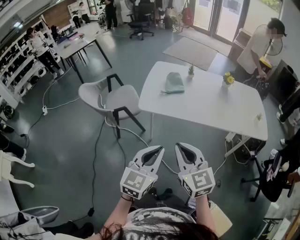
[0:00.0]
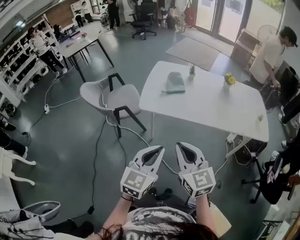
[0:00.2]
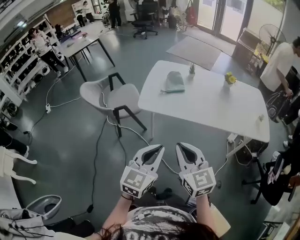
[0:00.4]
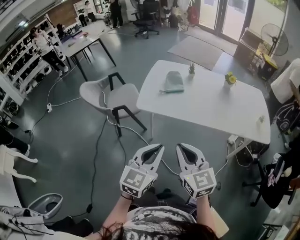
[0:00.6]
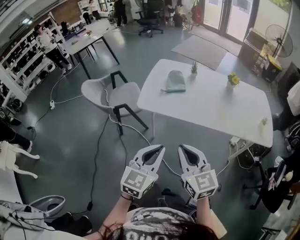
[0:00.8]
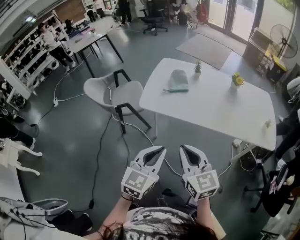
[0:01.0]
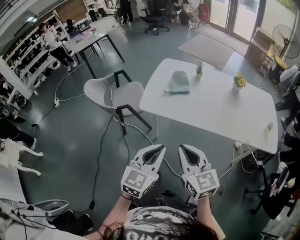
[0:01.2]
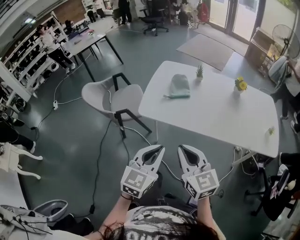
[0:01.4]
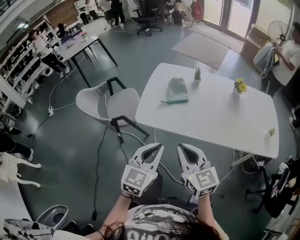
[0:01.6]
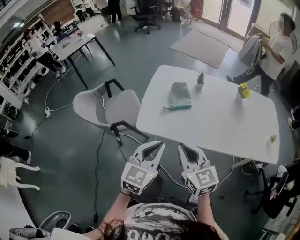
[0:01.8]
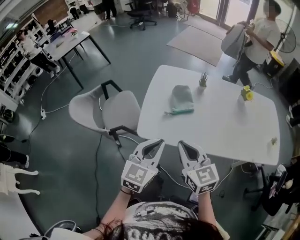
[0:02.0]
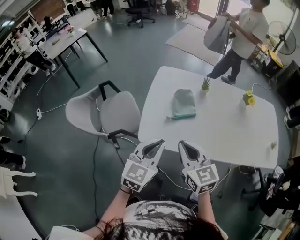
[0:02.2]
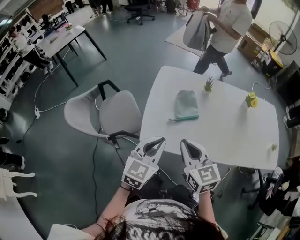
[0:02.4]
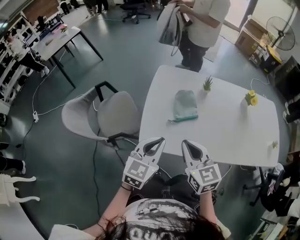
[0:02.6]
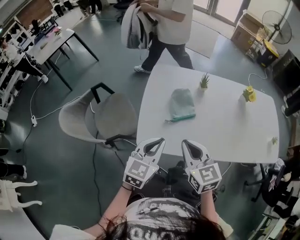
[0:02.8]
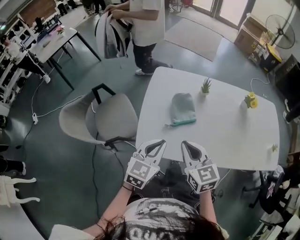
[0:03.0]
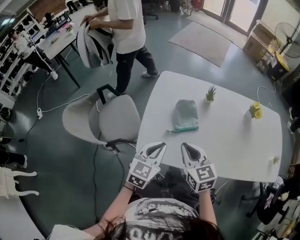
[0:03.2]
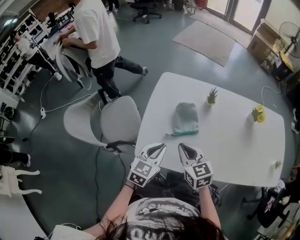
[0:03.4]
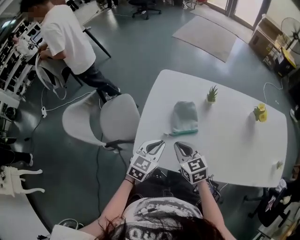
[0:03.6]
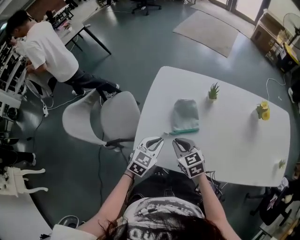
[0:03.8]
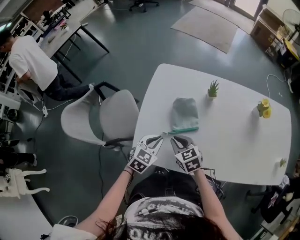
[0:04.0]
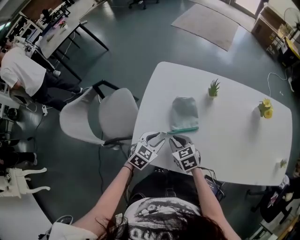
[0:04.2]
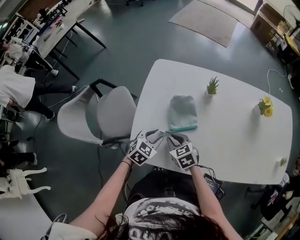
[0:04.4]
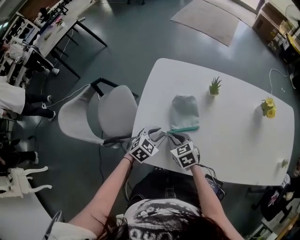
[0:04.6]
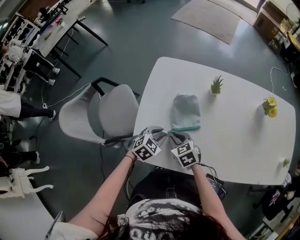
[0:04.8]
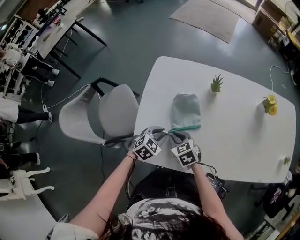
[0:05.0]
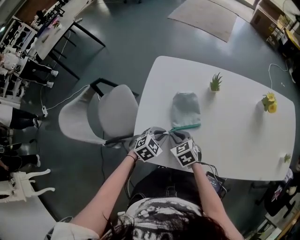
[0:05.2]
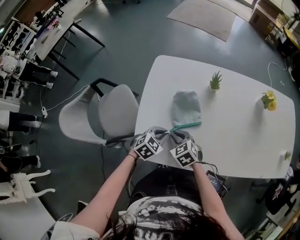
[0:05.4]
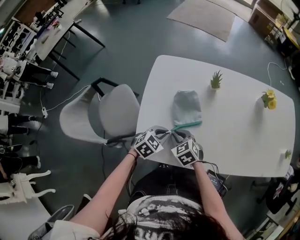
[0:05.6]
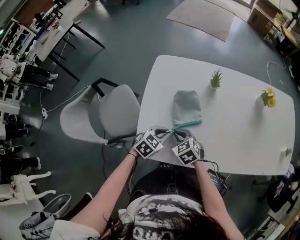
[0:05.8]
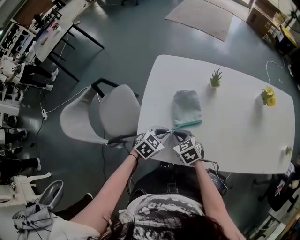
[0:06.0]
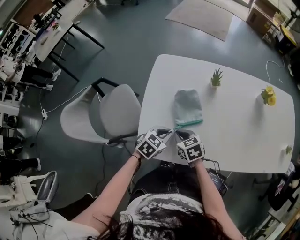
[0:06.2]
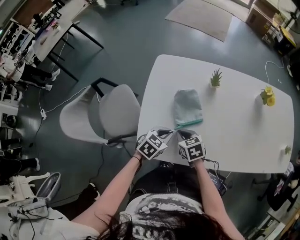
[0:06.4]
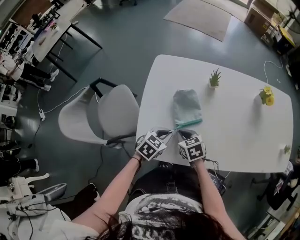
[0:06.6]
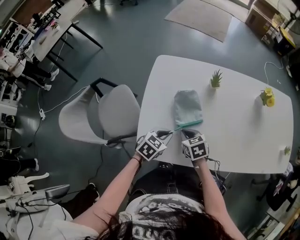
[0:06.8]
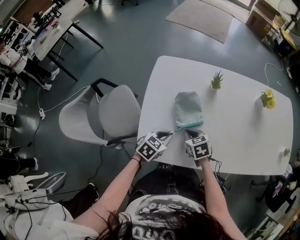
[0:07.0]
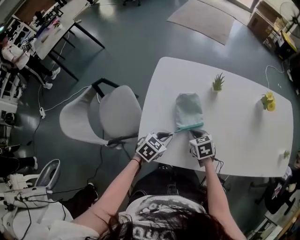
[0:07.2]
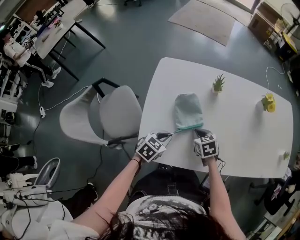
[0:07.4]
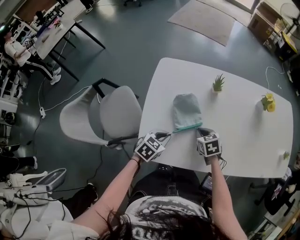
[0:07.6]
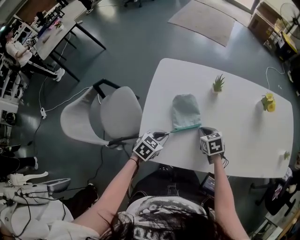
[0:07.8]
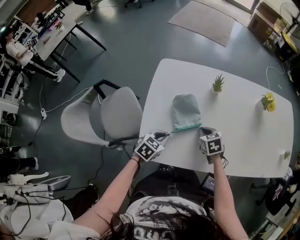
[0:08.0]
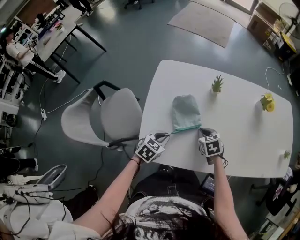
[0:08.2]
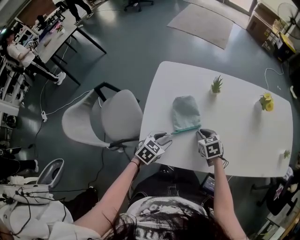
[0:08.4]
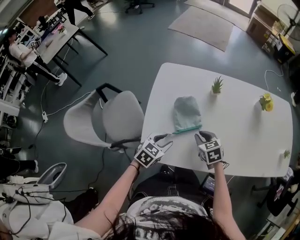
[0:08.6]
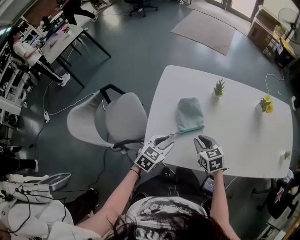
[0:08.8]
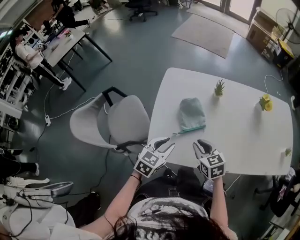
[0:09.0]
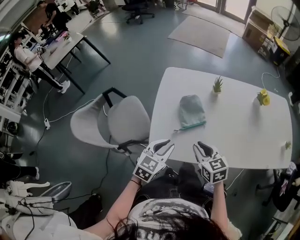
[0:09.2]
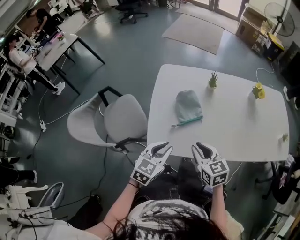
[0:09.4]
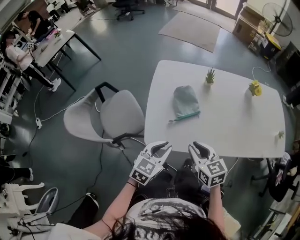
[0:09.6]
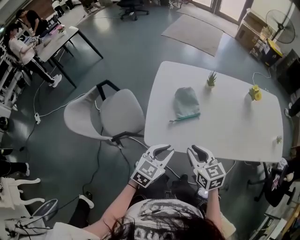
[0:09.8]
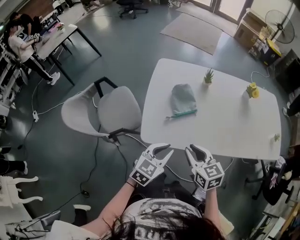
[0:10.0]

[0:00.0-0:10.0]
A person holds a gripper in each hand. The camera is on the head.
0:00.0 to 0:01.4: The two grippers go approximately 10 cm forward and to the right.
0:01.4 to 0:02.8: Both grippers move forward, approximately 25 cm.
0:02.8 to 0:04.2: Both grippers travel together downward and forward, about 20 cm. The left gripper turns by about 20 degrees, and opens, while the right gripper swivels approximately 30 degrees.
0:04.2 to 0:05.8: The left gripper closes its fingers.
0:05.8 to 0:07.2: The right gripper heads to the right, covering approximately 5 cm.
0:07.2 to 0:08.6: The left gripper opens up.
0:08.6 to 0:10.0: Both grippers travel together backward and upward, approximately 20 cm. The left gripper closes its fingers.

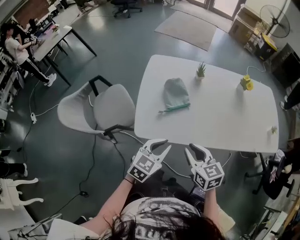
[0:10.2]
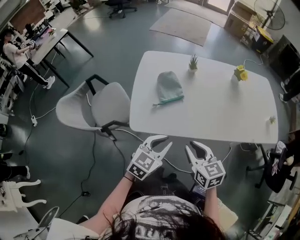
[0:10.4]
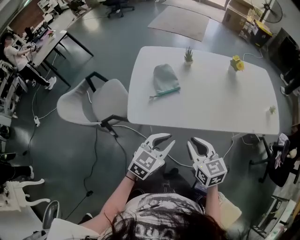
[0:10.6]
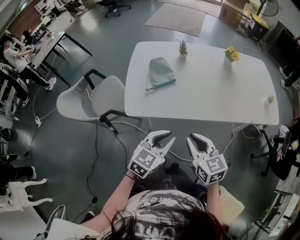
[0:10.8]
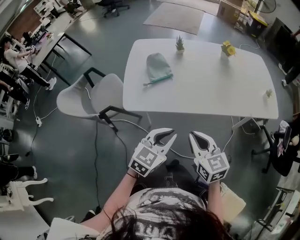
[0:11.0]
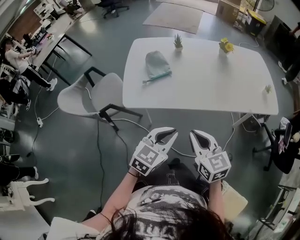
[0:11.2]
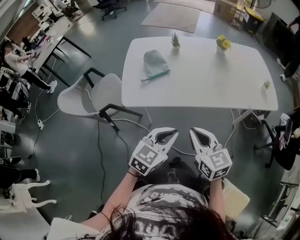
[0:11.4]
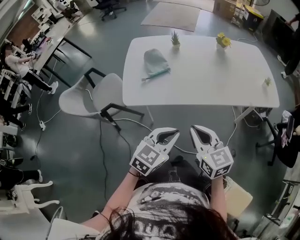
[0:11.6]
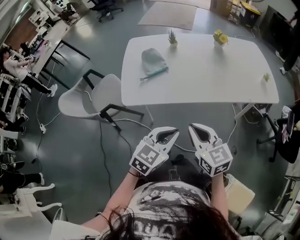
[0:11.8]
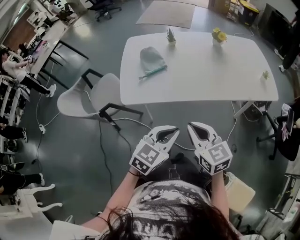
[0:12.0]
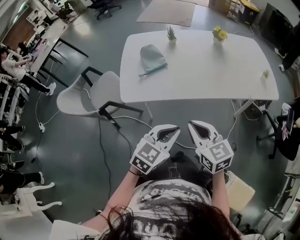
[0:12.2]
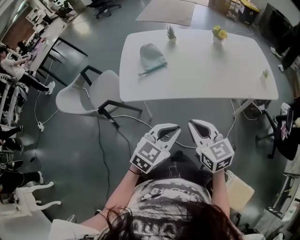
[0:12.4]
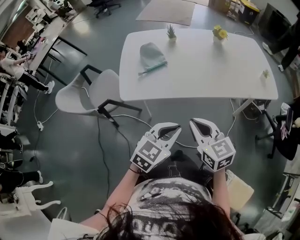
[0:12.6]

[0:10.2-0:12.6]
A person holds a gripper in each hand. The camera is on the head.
0:10.2 to 0:11.4: The left gripper shifts approximately 20 cm to the right and backward. The right gripper moves backward and to the right, about 15 cm.
0:11.4 to 0:12.6: There are only small adjustments of the grippers.

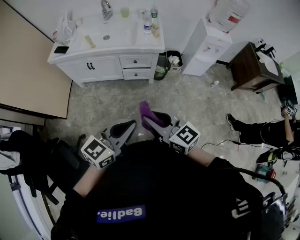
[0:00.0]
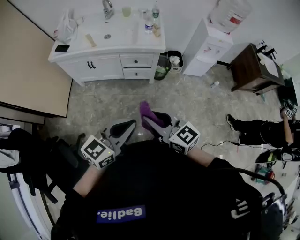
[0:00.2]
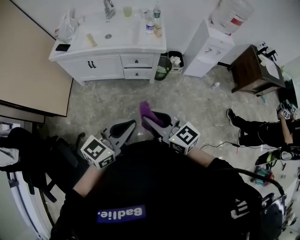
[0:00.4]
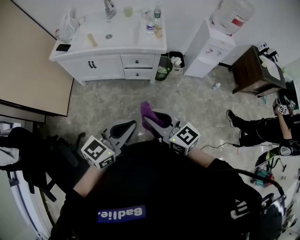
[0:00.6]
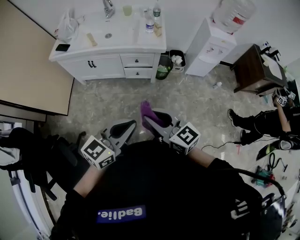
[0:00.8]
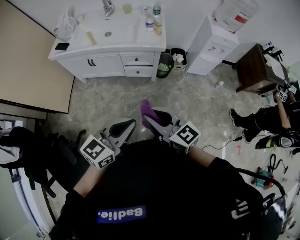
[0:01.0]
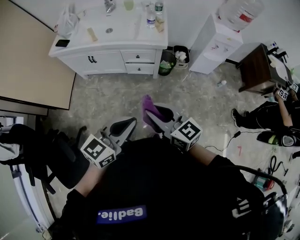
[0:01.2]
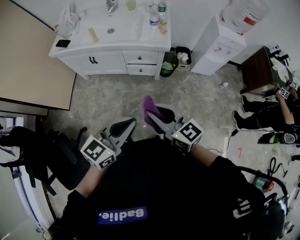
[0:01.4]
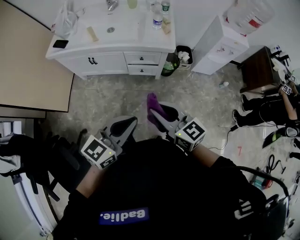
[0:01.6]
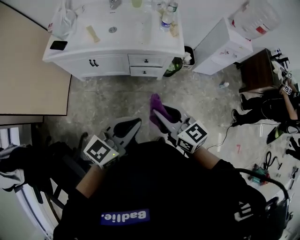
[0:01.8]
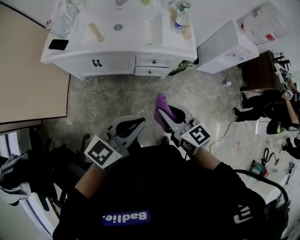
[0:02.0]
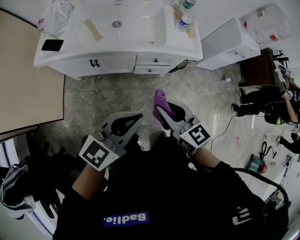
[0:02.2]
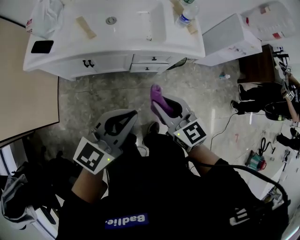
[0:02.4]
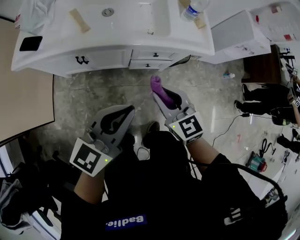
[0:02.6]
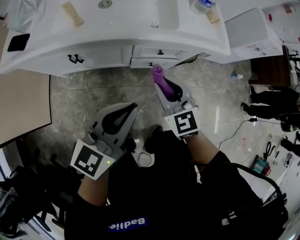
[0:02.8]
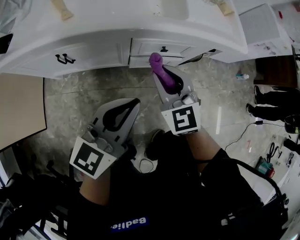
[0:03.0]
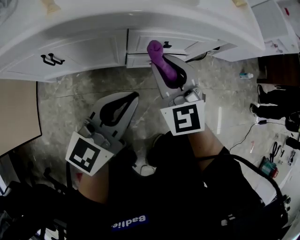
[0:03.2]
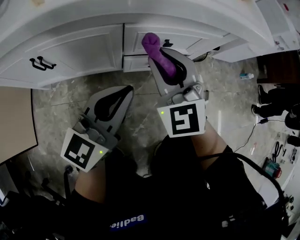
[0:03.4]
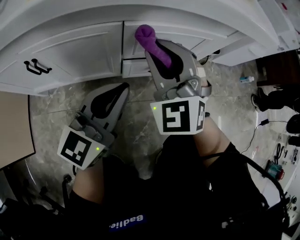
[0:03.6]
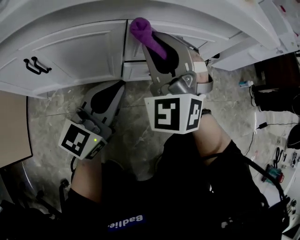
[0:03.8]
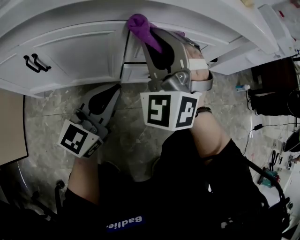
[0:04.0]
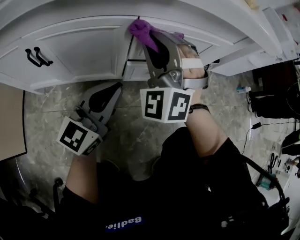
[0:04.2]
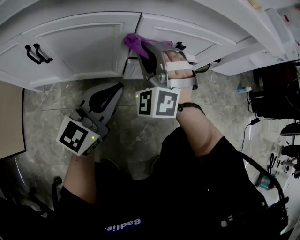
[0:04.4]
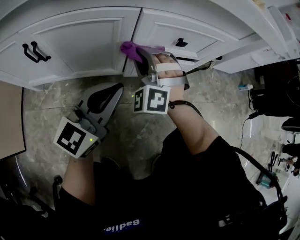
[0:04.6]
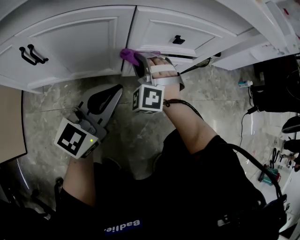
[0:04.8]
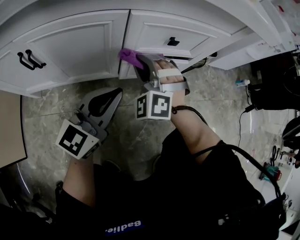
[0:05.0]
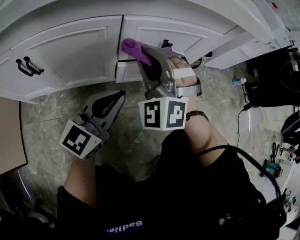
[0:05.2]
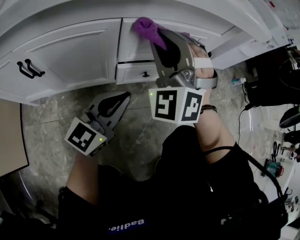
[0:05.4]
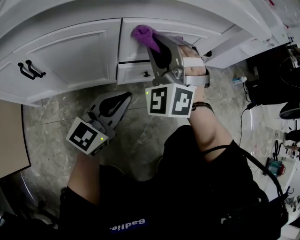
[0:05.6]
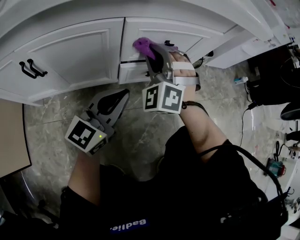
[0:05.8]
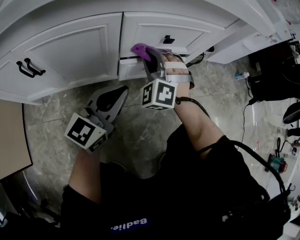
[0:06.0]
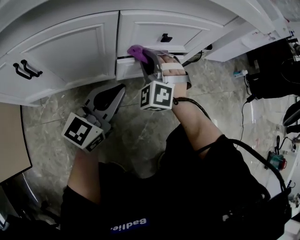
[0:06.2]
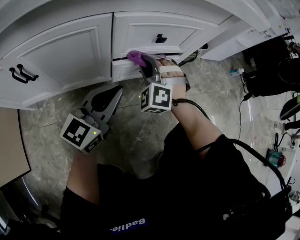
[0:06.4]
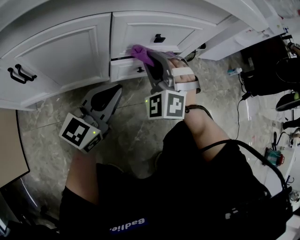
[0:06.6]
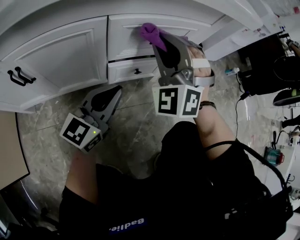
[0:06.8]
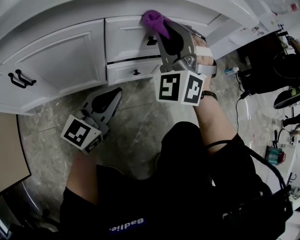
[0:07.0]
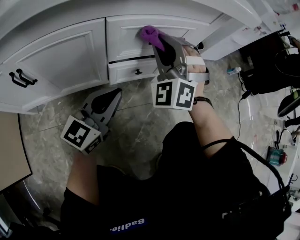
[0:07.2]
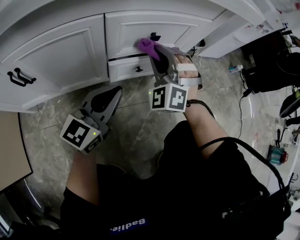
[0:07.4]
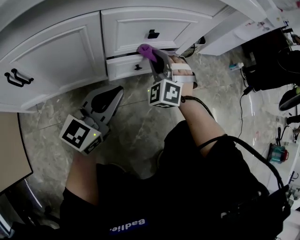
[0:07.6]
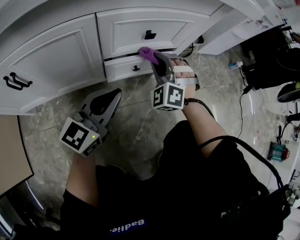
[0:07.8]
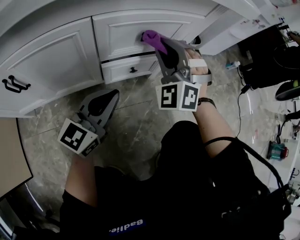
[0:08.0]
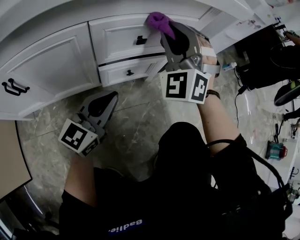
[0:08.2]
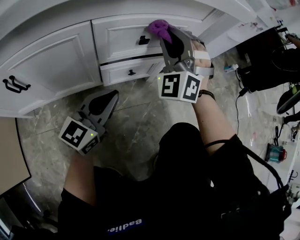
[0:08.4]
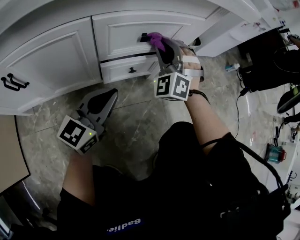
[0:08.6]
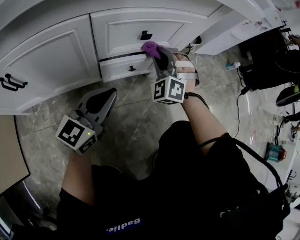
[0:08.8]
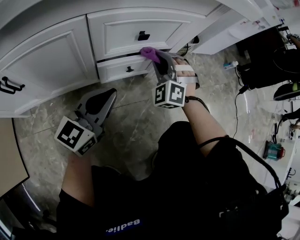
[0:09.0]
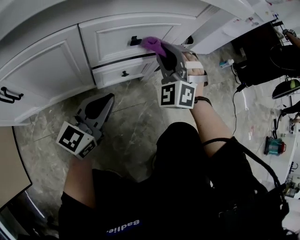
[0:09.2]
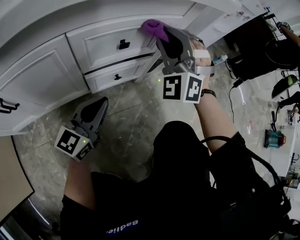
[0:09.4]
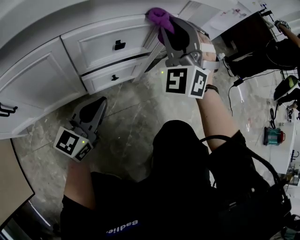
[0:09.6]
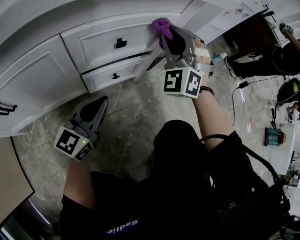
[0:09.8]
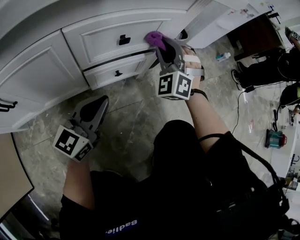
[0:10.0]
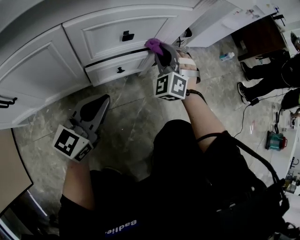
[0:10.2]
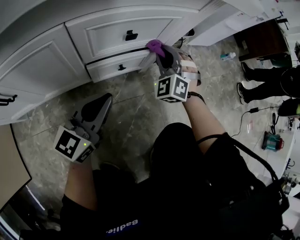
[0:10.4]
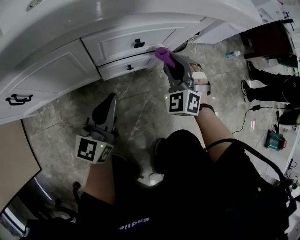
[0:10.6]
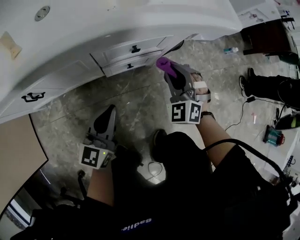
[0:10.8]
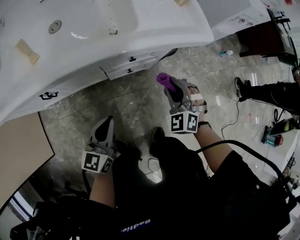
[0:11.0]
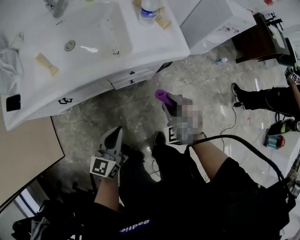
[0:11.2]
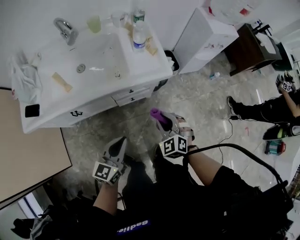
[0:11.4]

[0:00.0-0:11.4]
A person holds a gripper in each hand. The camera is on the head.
0:00.0 to 0:01.4: The grippers both shift forward by approximately 5 cm.
0:01.4 to 0:02.8: Both grippers travel together forward, downward and to the left, approximately 50 cm. The right gripper swivels approximately 40 degrees.
0:02.8 to 0:04.2: The left gripper heads downward, covering some 30 cm; the right gripper is displaced downward, forward and to the left by some 20 cm, and rolls counterclockwise, seen from behind, by about 50 degrees.
0:04.2 to 0:05.6: The right gripper moves up and down over roughly 20 cm, changing direction 2 times. Meanwhile the left gripper travels to the right by about 5 cm.
0:05.6 to 0:07.2: The right gripper swings up and down, roughly 20 cm each way, with 2 reversals.
0:07.2 to 0:08.6: The right gripper goes up and down, about 20 cm each way, reversing 2 times.
0:08.6 to 0:10.0: The right gripper goes up and down, approximately 20 cm each way, reversing 2 times.
0:10.0 to 0:11.4: The right gripper heads upward and backward, covering approximately 40 cm, and swivels some 40 degrees, while the left gripper goes approximately 40 cm upward.
